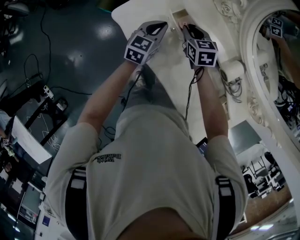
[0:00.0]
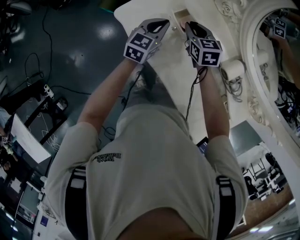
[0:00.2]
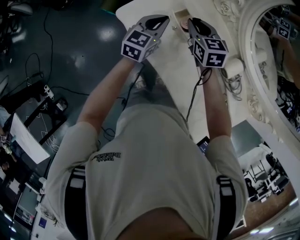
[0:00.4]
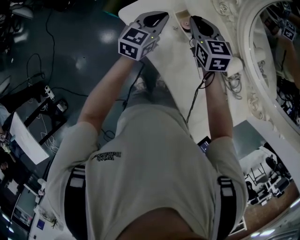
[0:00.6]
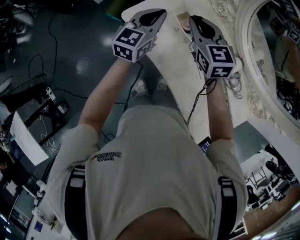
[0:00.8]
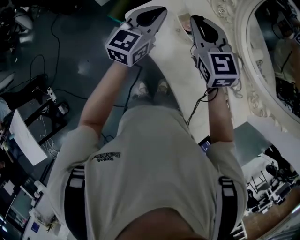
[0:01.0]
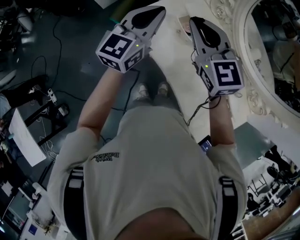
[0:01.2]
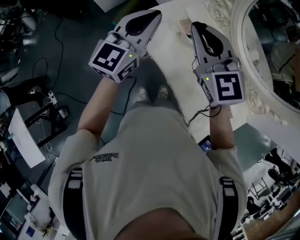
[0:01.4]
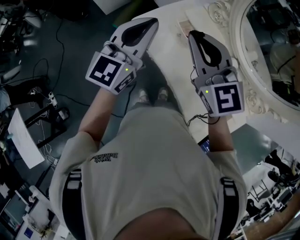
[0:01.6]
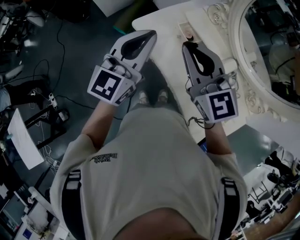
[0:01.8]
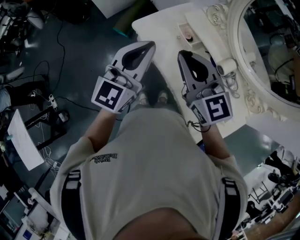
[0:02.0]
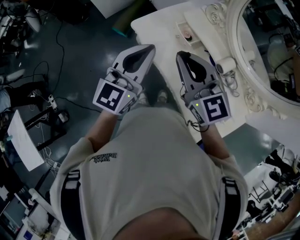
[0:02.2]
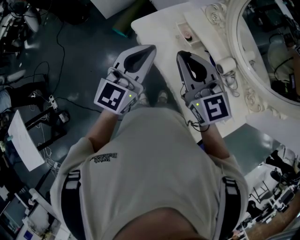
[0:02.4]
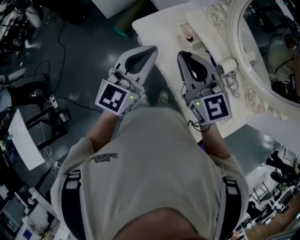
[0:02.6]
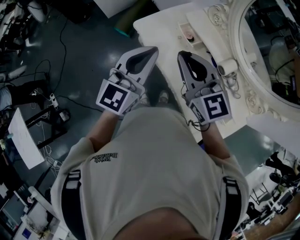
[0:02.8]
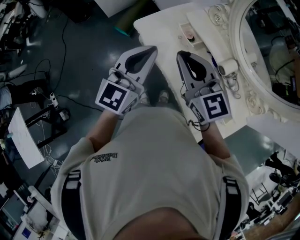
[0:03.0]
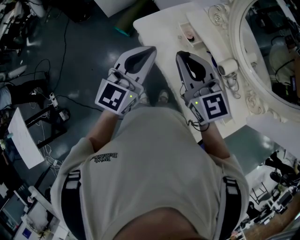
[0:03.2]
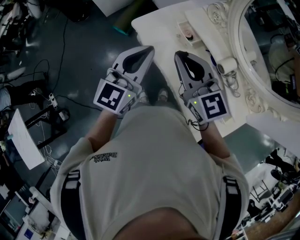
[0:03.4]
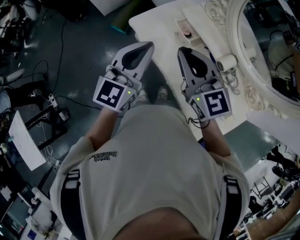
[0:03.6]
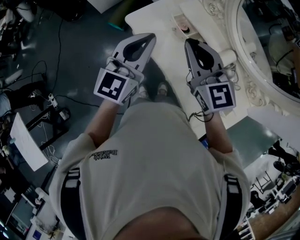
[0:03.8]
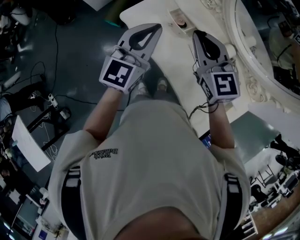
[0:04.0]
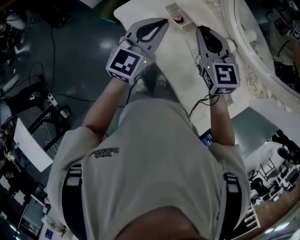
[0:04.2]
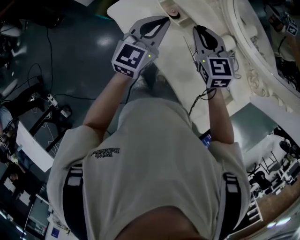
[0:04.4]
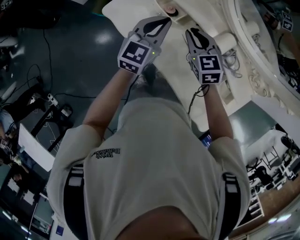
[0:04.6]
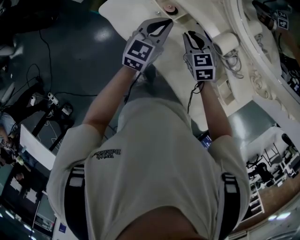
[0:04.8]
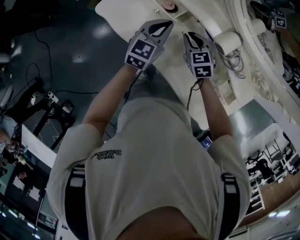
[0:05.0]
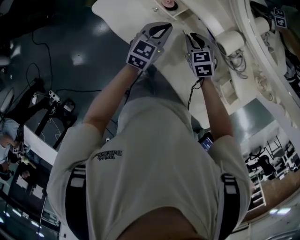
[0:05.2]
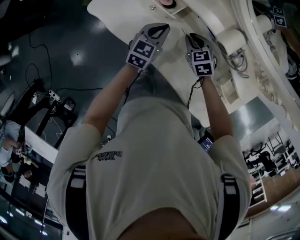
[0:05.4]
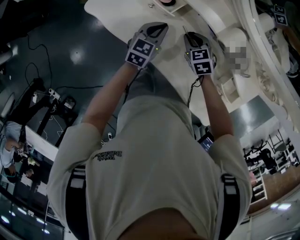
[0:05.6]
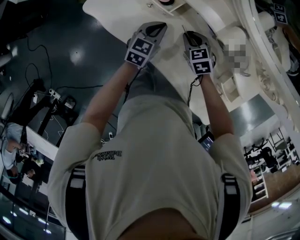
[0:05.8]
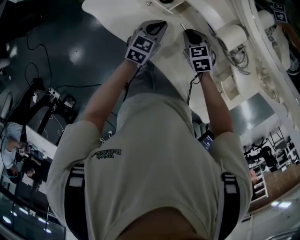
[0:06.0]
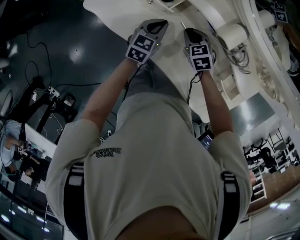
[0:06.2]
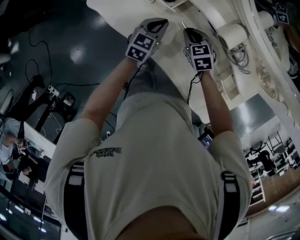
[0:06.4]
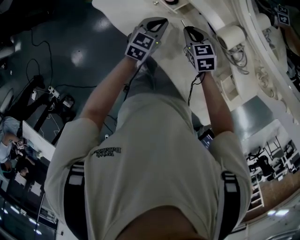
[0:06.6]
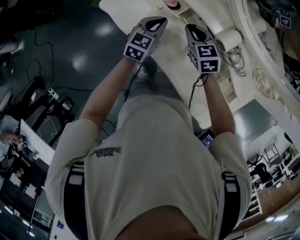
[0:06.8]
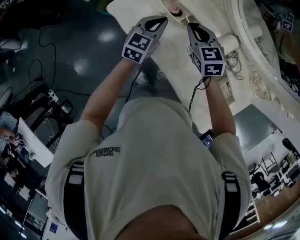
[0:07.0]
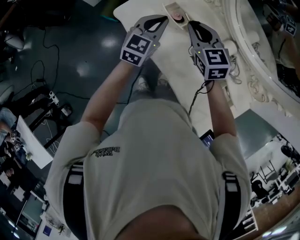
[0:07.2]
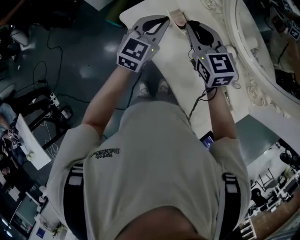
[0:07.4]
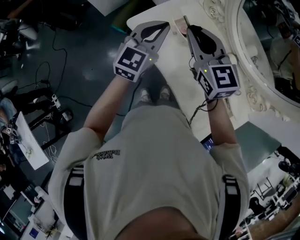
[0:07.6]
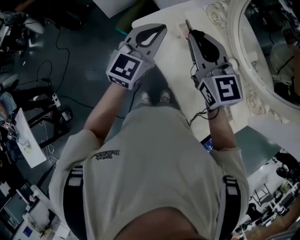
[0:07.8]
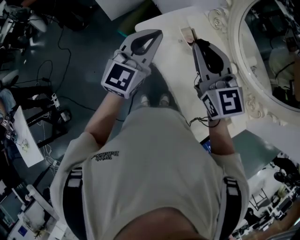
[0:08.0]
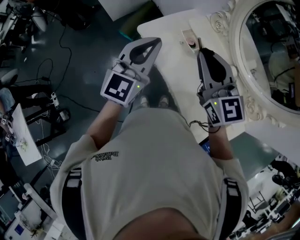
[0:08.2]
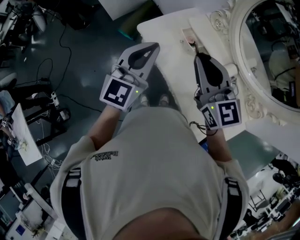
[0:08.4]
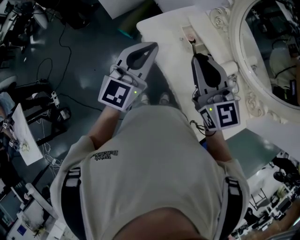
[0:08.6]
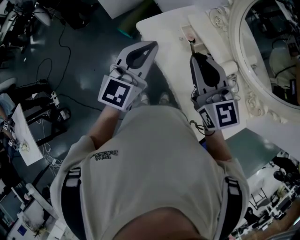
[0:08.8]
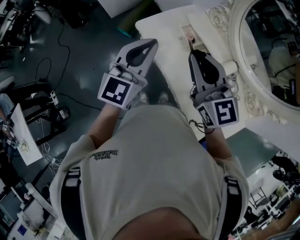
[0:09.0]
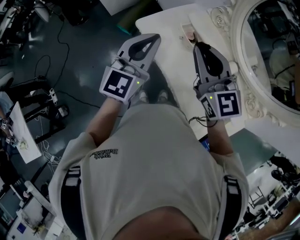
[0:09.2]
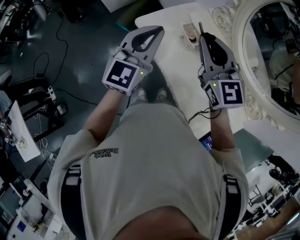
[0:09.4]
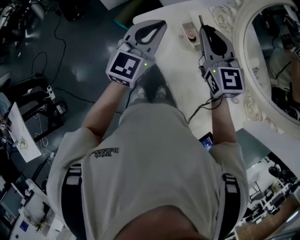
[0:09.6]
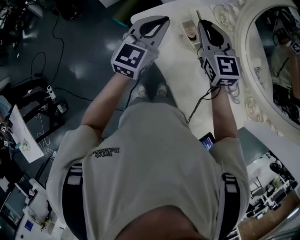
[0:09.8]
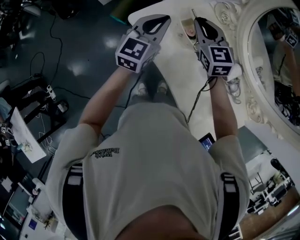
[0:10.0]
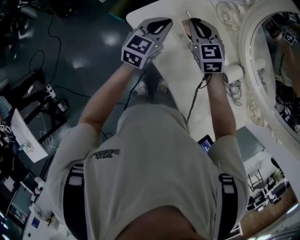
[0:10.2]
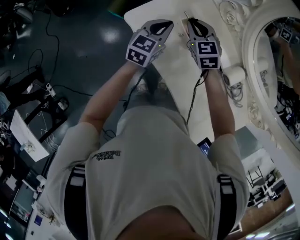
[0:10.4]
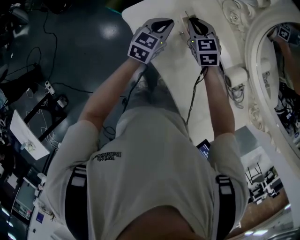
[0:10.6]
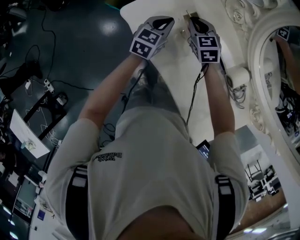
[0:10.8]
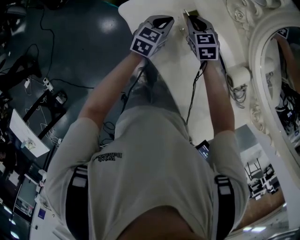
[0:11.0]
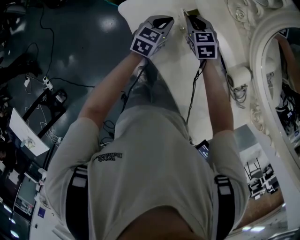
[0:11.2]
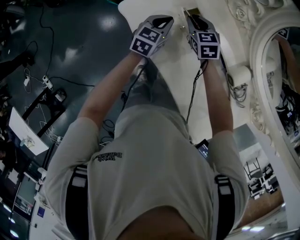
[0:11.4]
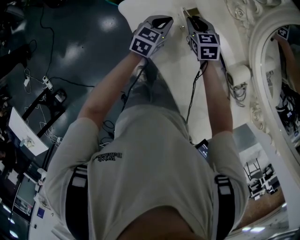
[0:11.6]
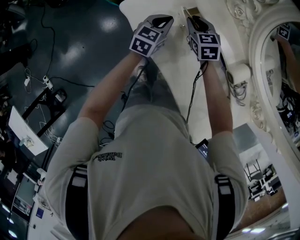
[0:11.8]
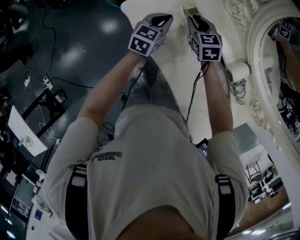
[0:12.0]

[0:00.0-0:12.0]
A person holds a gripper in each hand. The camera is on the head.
0.0 to 1.6 s: The two grippers go about 40 cm upward and backward. The right gripper angles its fingers upward, by some 40 degrees. The left gripper turns by roughly 30 degrees.
1.6 to 3.0 s: The right gripper changes place by approximately 5 cm, while the left gripper moves backward, approximately 5 cm.
3.0 to 4.4 s: The left gripper goes some 20 cm downward, forward and to the right. The right gripper is displaced downward, to the right and forward by some 25 cm, and swivels roughly 30 degrees.
4.4 to 6.0 s: The grippers both shift downward by roughly 25 cm. The left gripper rotates some 30 degrees. The right gripper turns by approximately 30 degrees.
6.0 to 7.6 s: The grippers both shift upward by approximately 35 cm. The right gripper tilts its fingers approximately 40 degrees upward, while the left gripper turns by some 30 degrees.
7.6 to 9.0 s: The right gripper moves backward, approximately 10 cm; the left gripper travels backward, to the left and upward by roughly 15 cm.
9.0 to 10.4 s: Both grippers move downward and forward, roughly 35 cm. The left gripper turns by roughly 30 degrees, while the right gripper turns by some 30 degrees.
10.4 to 12.0 s: The grippers both shift downward by some 5 cm.

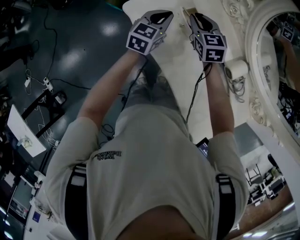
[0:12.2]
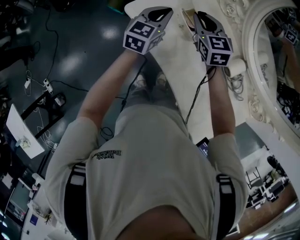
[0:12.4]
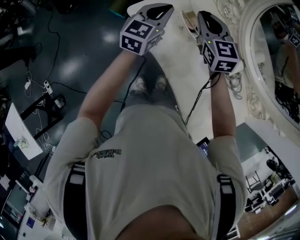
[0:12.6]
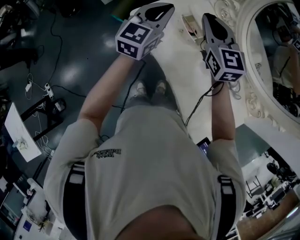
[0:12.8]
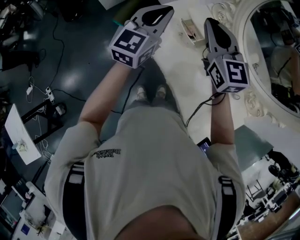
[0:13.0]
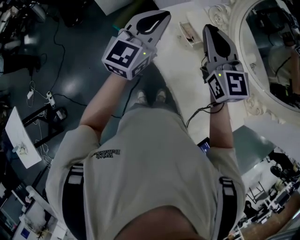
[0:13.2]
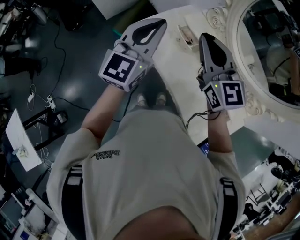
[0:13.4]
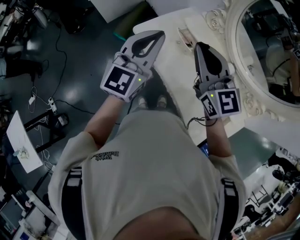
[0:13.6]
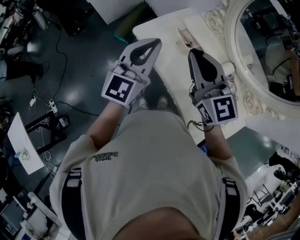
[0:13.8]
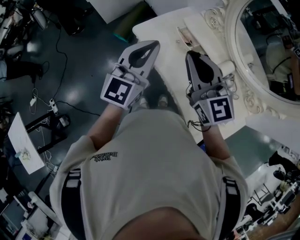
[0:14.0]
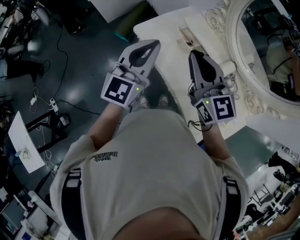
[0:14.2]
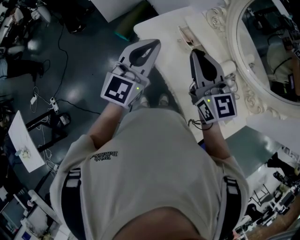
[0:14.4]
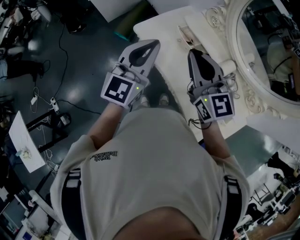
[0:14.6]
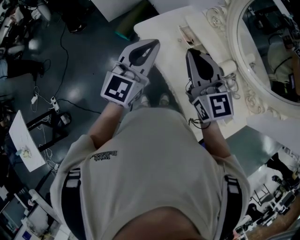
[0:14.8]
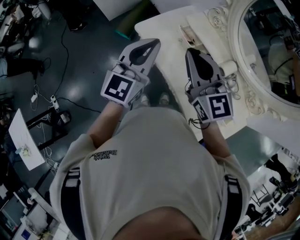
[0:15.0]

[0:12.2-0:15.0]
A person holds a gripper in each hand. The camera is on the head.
12.2 to 13.6 s: Both grippers travel together upward and backward, roughly 35 cm. The left gripper rotates some 30 degrees, while the right gripper tips its fingers upward by about 30 degrees.
13.6 to 15.0 s: The grippers make only small movements.

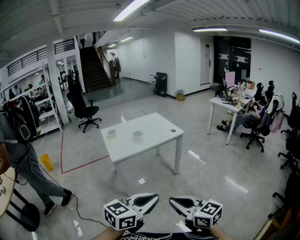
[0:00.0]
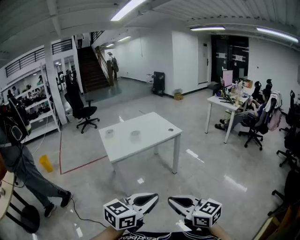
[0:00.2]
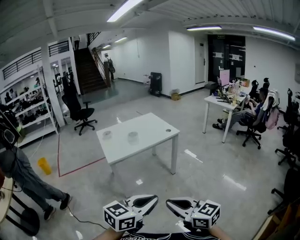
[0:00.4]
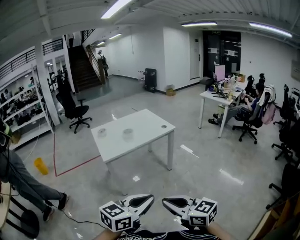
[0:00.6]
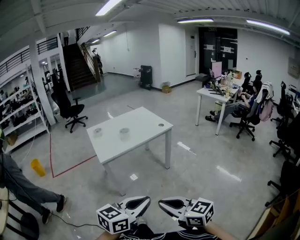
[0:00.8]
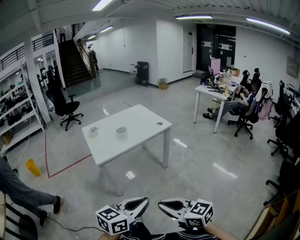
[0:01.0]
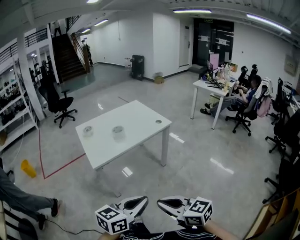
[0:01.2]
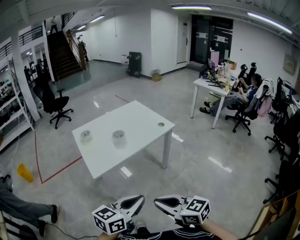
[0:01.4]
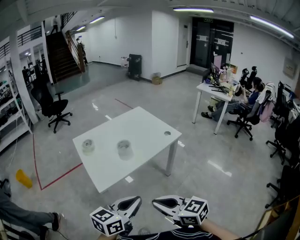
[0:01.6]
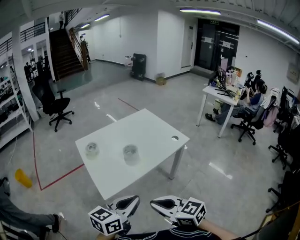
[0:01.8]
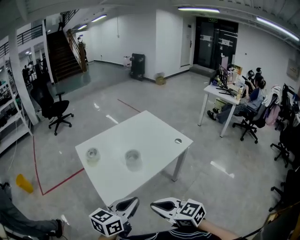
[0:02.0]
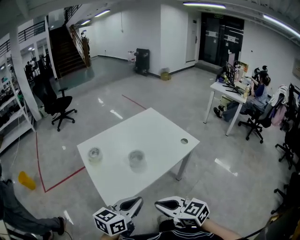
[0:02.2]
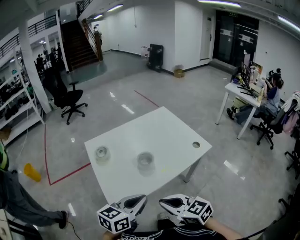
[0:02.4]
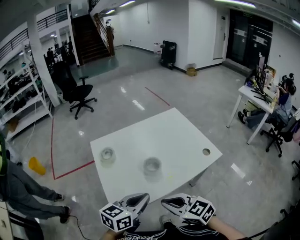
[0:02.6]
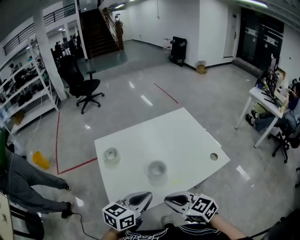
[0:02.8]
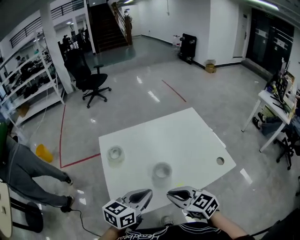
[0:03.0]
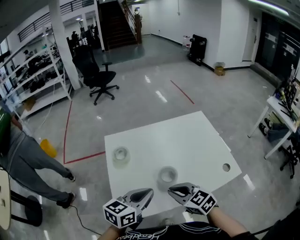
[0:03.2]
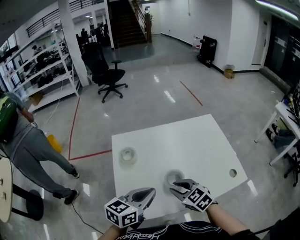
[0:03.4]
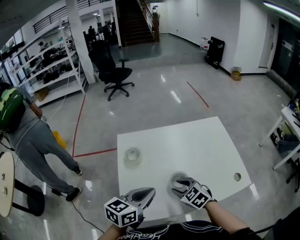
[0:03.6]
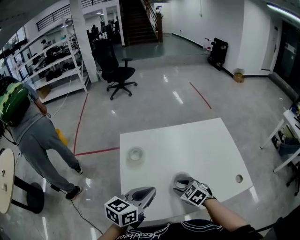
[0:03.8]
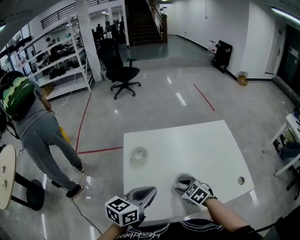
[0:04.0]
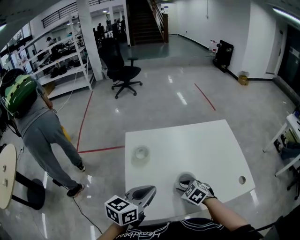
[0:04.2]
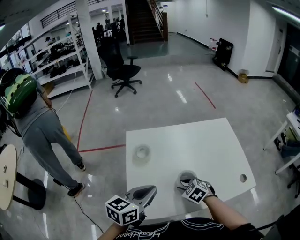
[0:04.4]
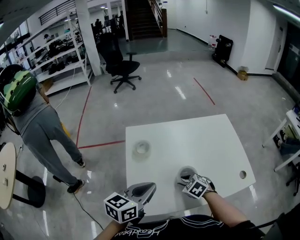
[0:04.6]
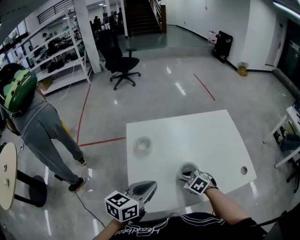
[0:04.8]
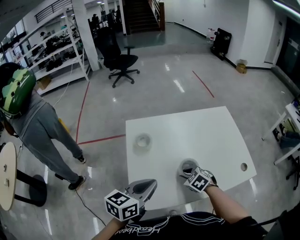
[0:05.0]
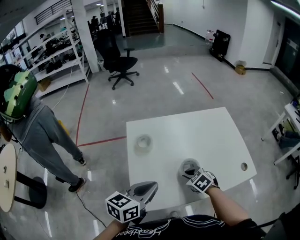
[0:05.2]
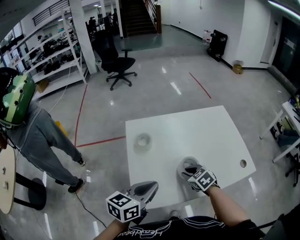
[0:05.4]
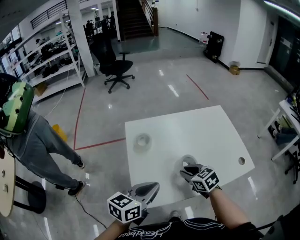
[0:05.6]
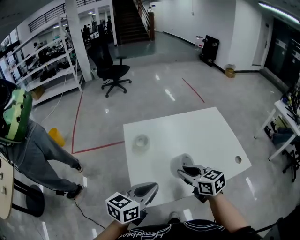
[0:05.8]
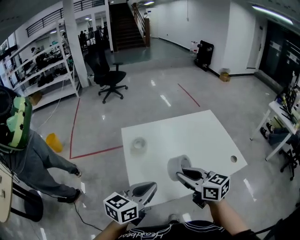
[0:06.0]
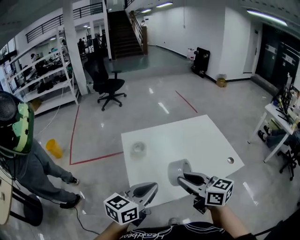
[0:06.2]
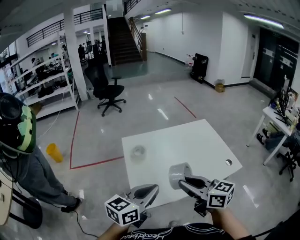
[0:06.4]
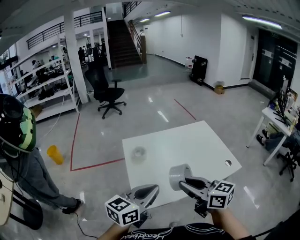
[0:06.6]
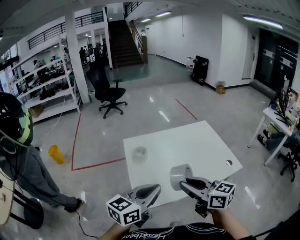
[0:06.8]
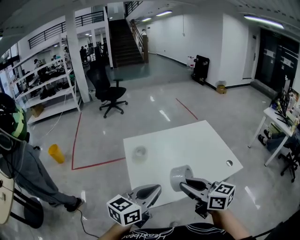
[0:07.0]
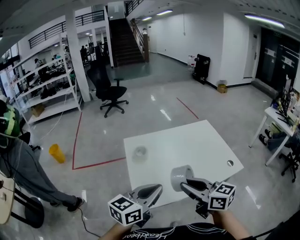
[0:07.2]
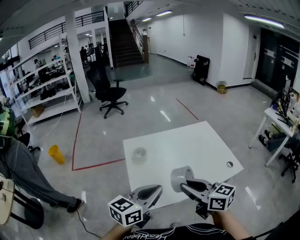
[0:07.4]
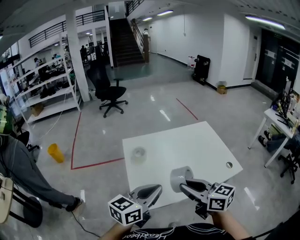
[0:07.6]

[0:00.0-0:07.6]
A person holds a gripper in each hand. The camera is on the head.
0.0 to 1.6 s: Both grippers travel together forward and to the left, about 30 cm.
1.6 to 3.0 s: The grippers both shift forward by some 30 cm. The right gripper changes its angle by about 20 degrees.
3.0 to 4.6 s: The left gripper goes roughly 10 cm to the left. The right gripper goes some 20 cm downward and forward, tilts its fingers about 30 degrees downward, and opens its fingers.
4.6 to 6.0 s: The left gripper shifts about 5 cm backward; the right gripper travels upward by roughly 20 cm, and points its fingers roughly 40 degrees further upward.
6.0 to 7.6 s: The right gripper goes approximately 5 cm backward.

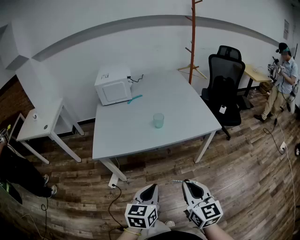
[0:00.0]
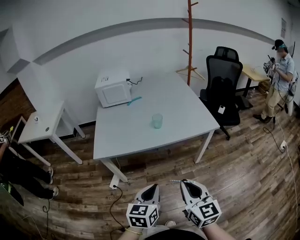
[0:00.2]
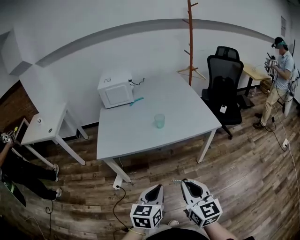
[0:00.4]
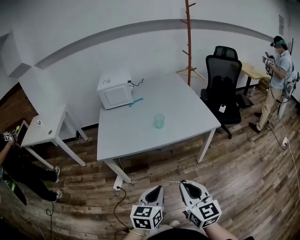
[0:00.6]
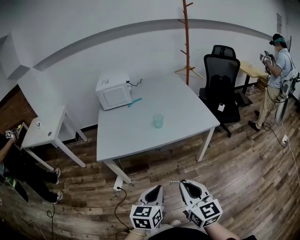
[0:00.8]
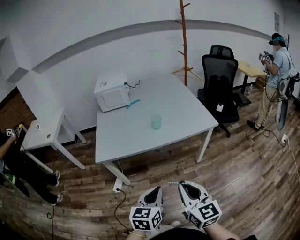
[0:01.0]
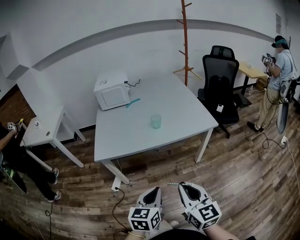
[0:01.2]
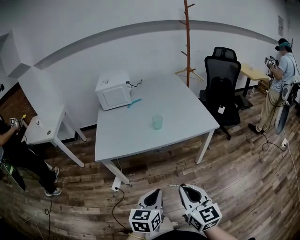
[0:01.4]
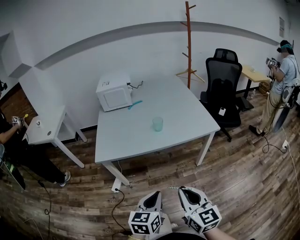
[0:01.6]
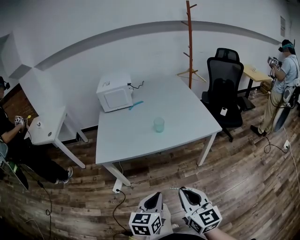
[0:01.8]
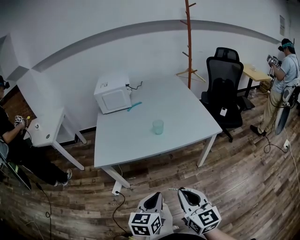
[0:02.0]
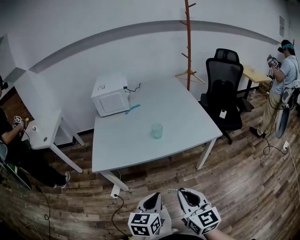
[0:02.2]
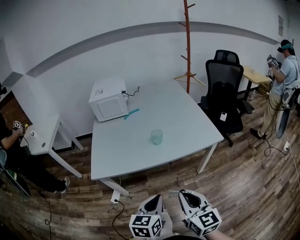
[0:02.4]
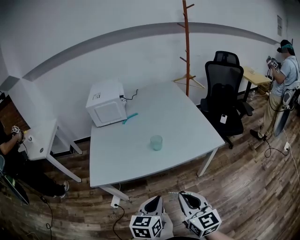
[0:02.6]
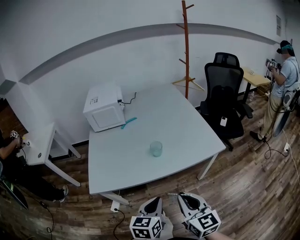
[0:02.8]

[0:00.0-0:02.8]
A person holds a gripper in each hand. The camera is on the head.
0.0 to 1.4 s: The left gripper moves roughly 5 cm.
1.4 to 2.8 s: Both grippers move forward, approximately 20 cm.
